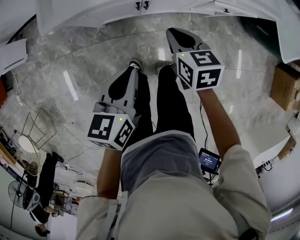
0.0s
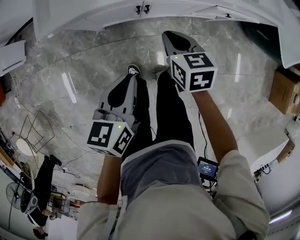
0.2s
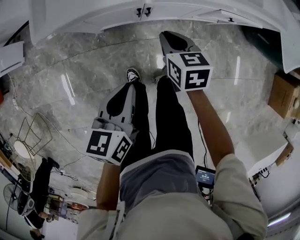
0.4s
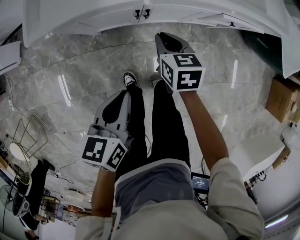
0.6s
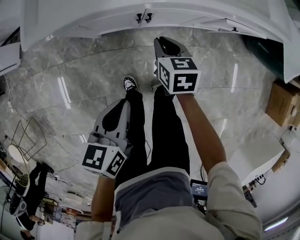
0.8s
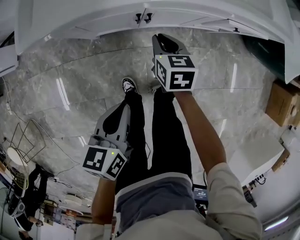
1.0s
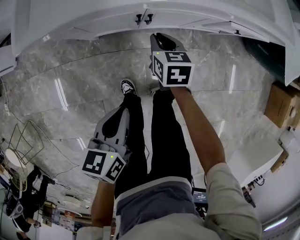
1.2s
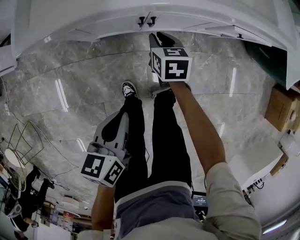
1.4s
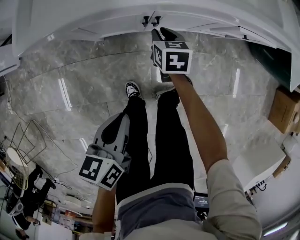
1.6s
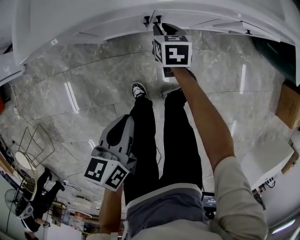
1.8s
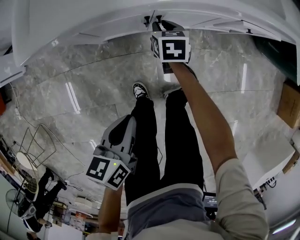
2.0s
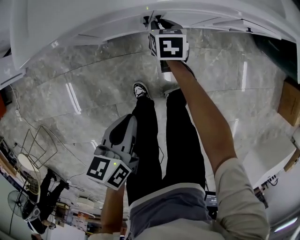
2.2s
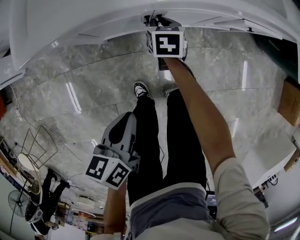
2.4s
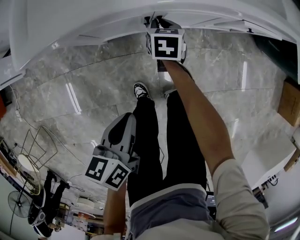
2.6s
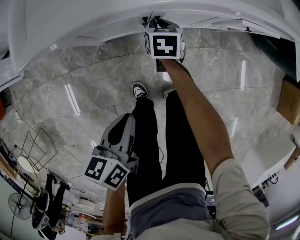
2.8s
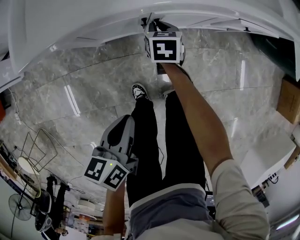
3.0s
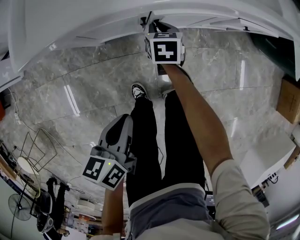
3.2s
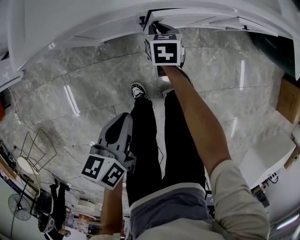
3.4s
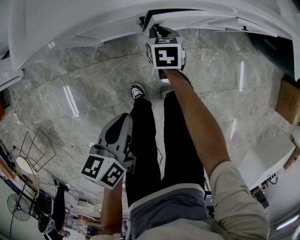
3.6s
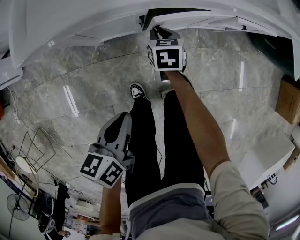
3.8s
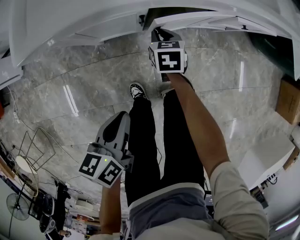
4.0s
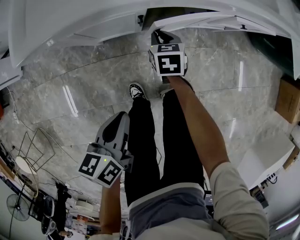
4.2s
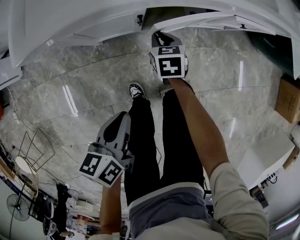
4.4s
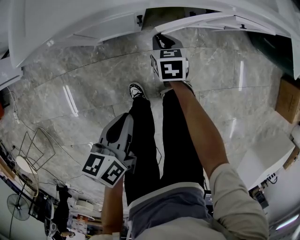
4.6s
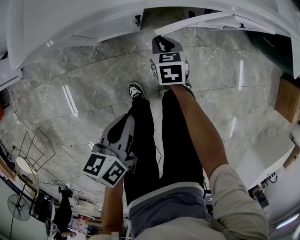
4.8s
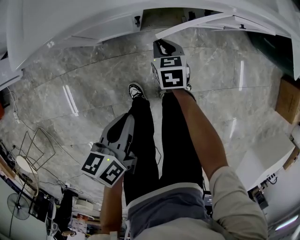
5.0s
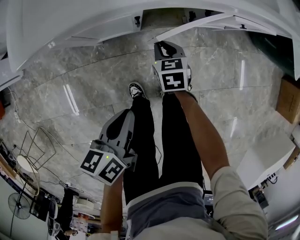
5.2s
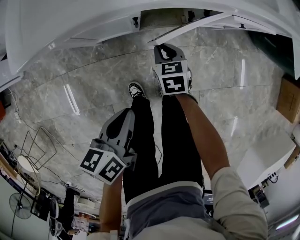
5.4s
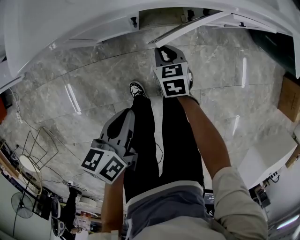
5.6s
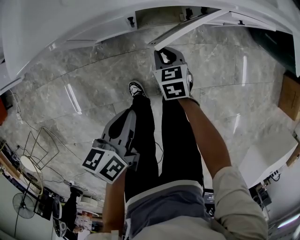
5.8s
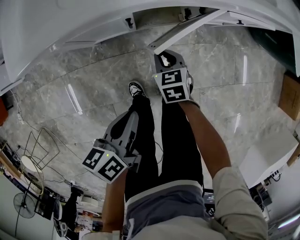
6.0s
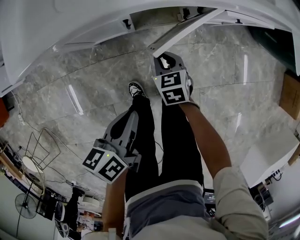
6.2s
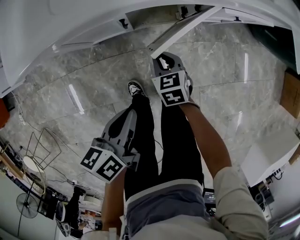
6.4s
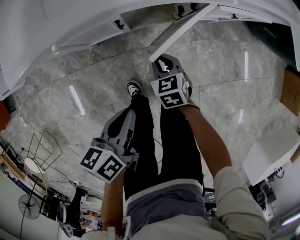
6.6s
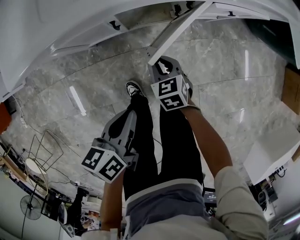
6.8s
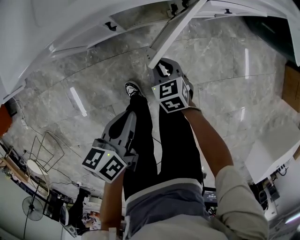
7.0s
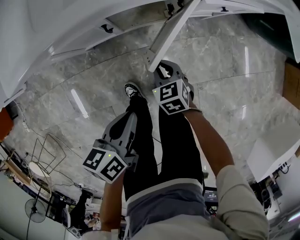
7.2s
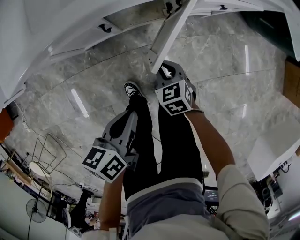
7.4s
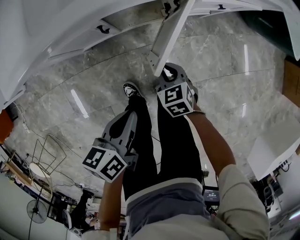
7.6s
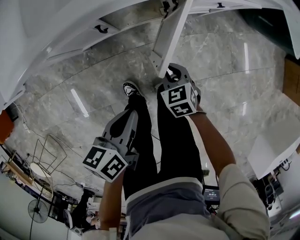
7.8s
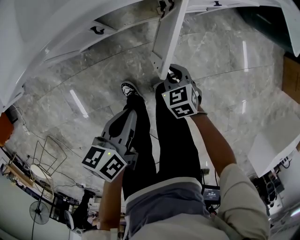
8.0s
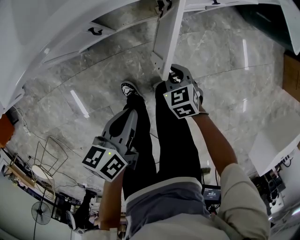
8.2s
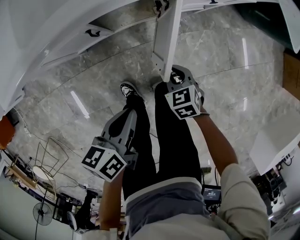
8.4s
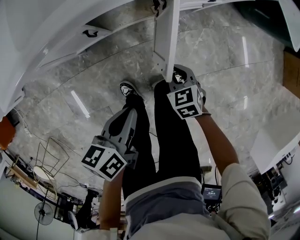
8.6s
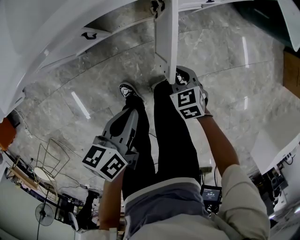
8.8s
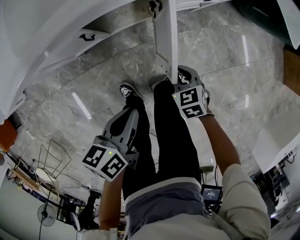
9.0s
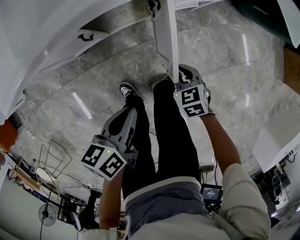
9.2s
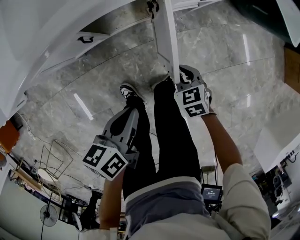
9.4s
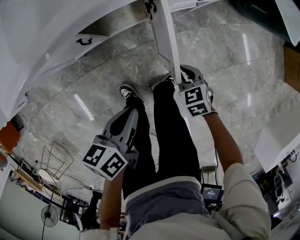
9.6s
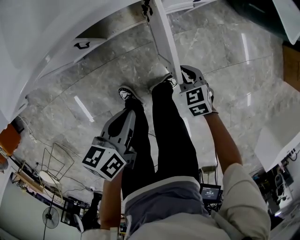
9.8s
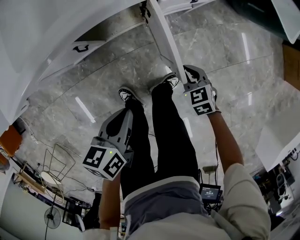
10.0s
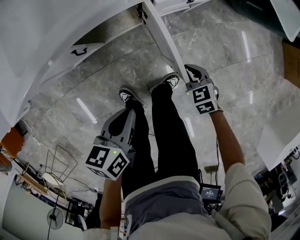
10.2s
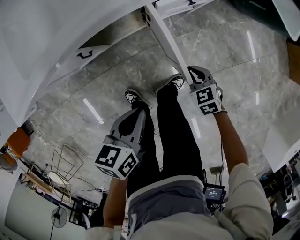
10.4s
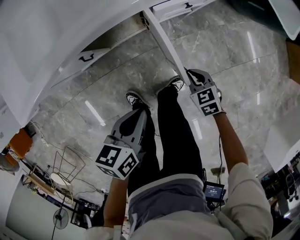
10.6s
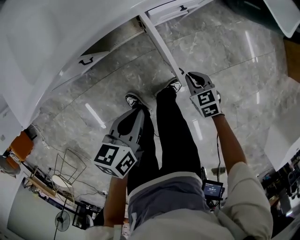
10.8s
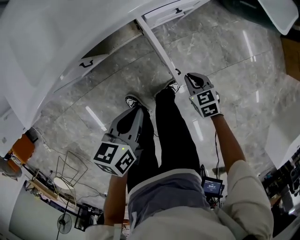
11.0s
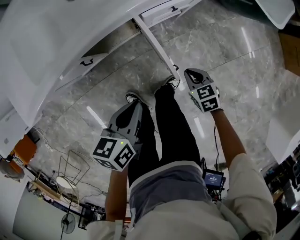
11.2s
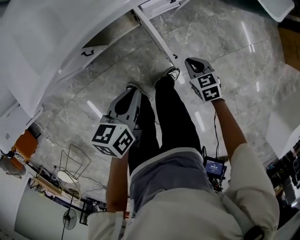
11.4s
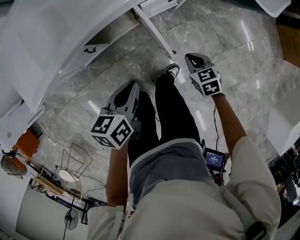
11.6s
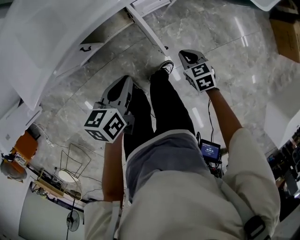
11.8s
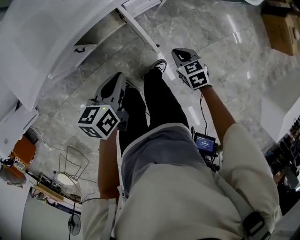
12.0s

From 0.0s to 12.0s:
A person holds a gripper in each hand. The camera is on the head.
From 0.0s to 1.6s: The left gripper goes approximately 15 cm downward; the right gripper goes some 25 cm downward and forward.
From 1.6s to 3.0s: The grippers make only small movements.
From 3.0s to 4.4s: The right gripper goes some 5 cm backward.
From 4.4s to 6.0s: The right gripper moves backward, some 5 cm, while the left gripper shifts approximately 5 cm to the right.
From 6.0s to 7.6s: The left gripper heads to the right, covering about 5 cm. The right gripper moves to the right and backward, about 10 cm.
From 7.6s to 9.0s: The left gripper moves approximately 5 cm. The right gripper moves to the right, approximately 10 cm.
From 9.0s to 10.4s: The right gripper is displaced to the right by about 10 cm; the left gripper heads to the right, covering approximately 5 cm.
From 10.4s to 12.0s: Both grippers move upward, about 15 cm.

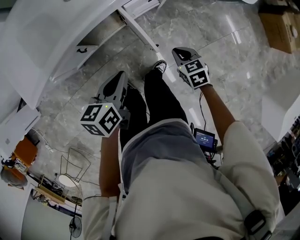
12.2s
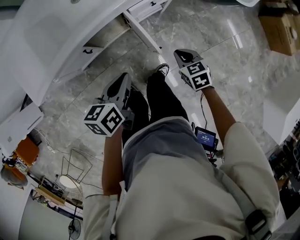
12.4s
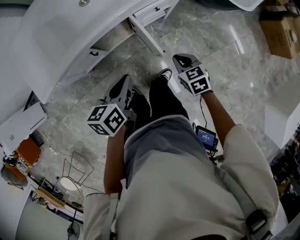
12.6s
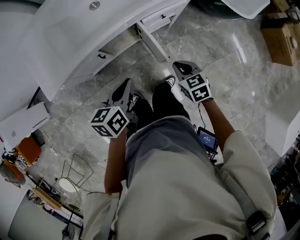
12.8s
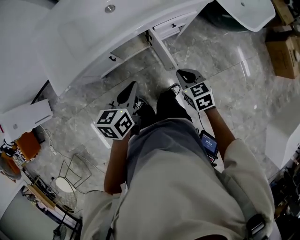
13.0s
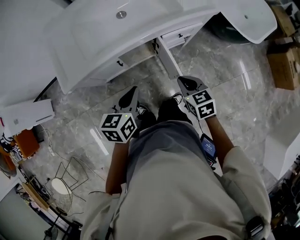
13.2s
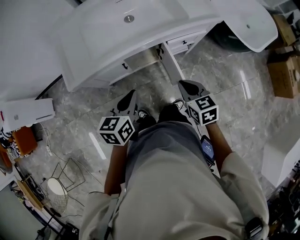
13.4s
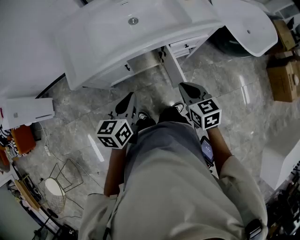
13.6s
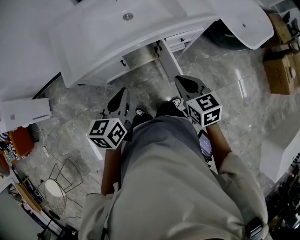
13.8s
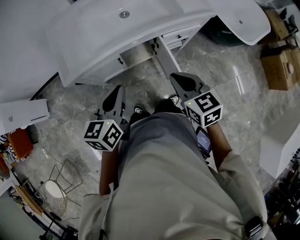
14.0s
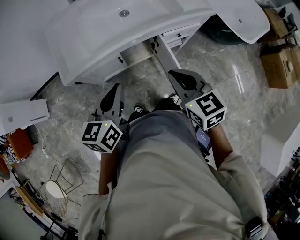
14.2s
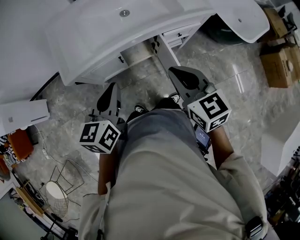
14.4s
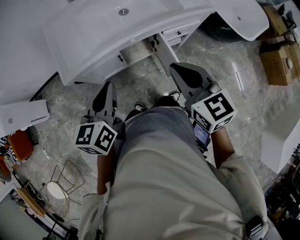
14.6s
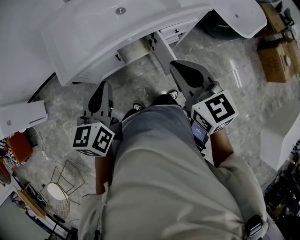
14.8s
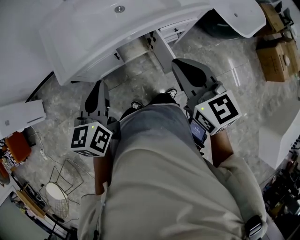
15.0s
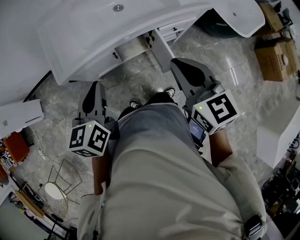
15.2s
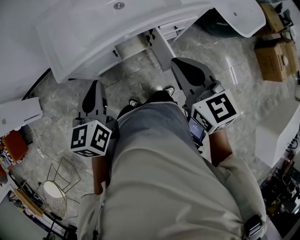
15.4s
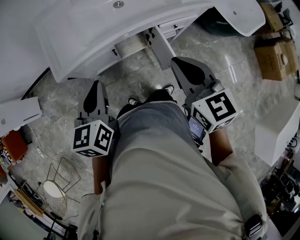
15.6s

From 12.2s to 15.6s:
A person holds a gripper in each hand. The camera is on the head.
From 12.2s to 13.8s: The right gripper is displaced upward and to the left by about 30 cm, and changes its angle by roughly 20 degrees. Meanwhile the left gripper heads to the left and upward, covering approximately 20 cm, and turns by approximately 20 degrees.
From 13.8s to 15.6s: The right gripper heads upward, covering roughly 10 cm. The left gripper moves to the left, some 5 cm.

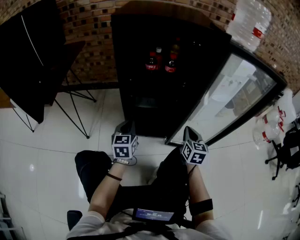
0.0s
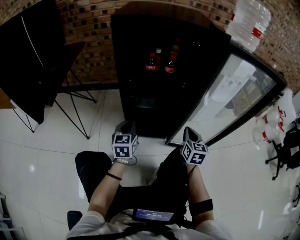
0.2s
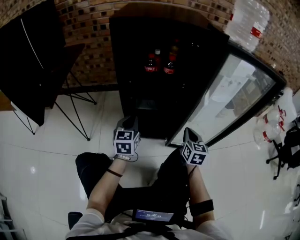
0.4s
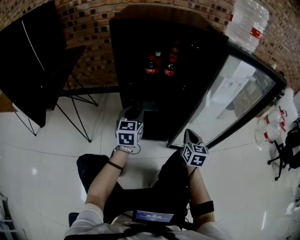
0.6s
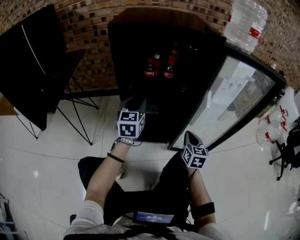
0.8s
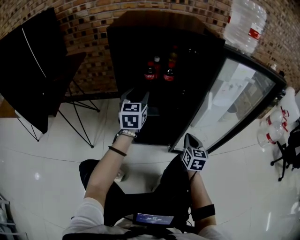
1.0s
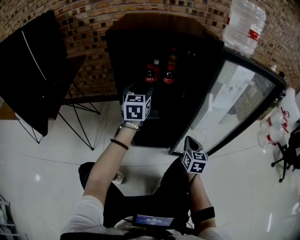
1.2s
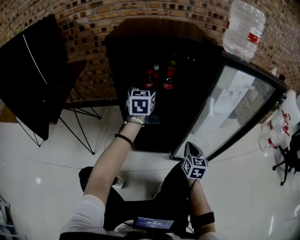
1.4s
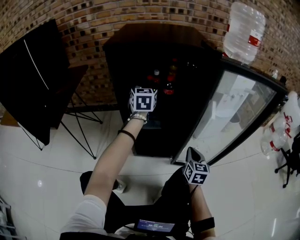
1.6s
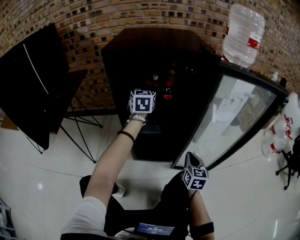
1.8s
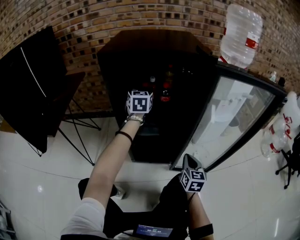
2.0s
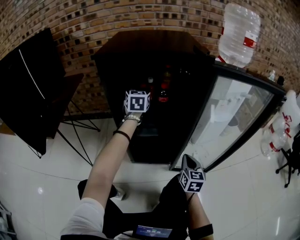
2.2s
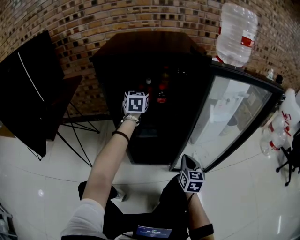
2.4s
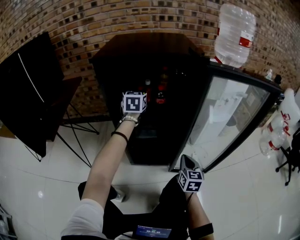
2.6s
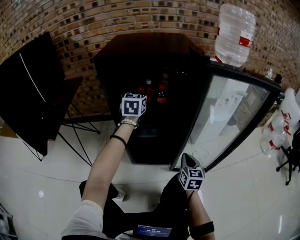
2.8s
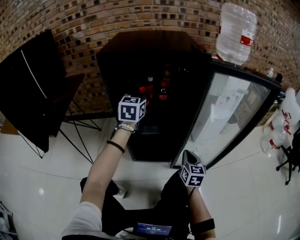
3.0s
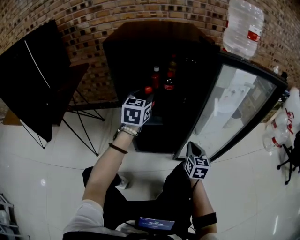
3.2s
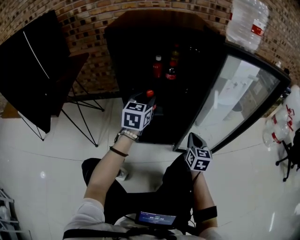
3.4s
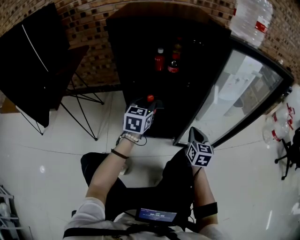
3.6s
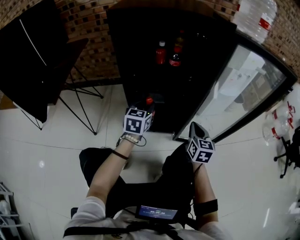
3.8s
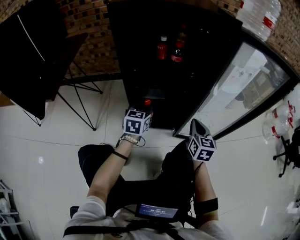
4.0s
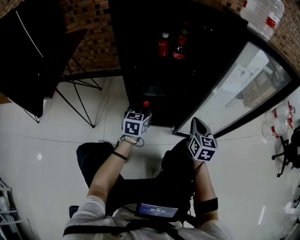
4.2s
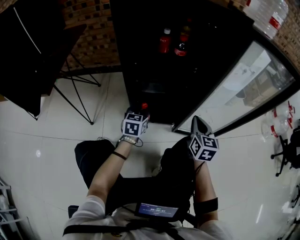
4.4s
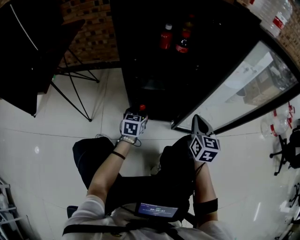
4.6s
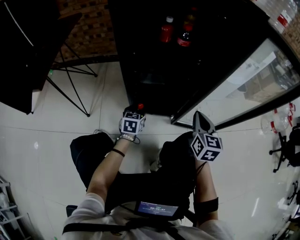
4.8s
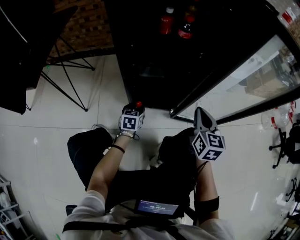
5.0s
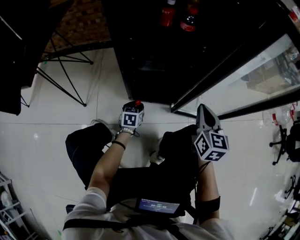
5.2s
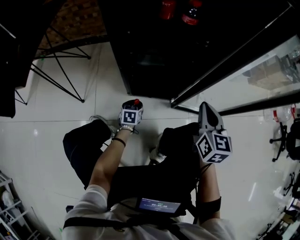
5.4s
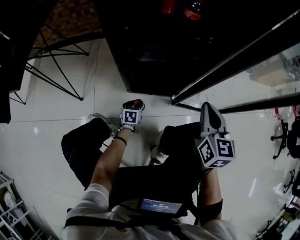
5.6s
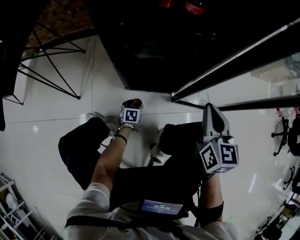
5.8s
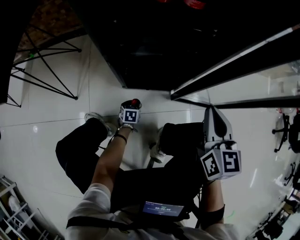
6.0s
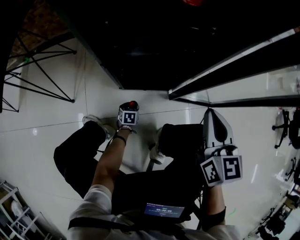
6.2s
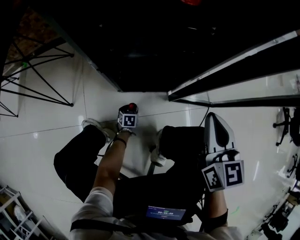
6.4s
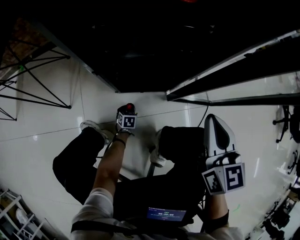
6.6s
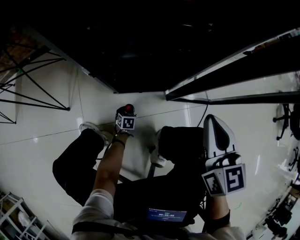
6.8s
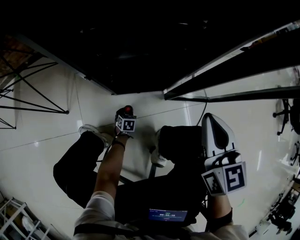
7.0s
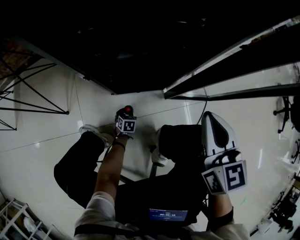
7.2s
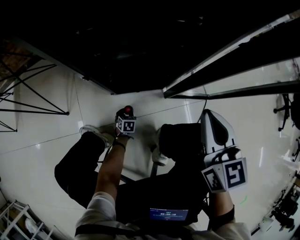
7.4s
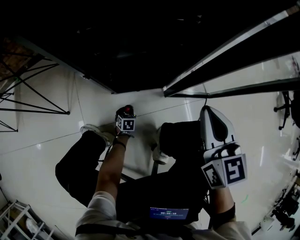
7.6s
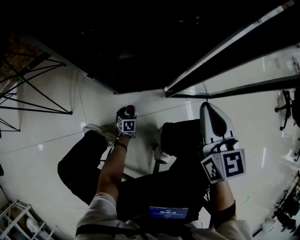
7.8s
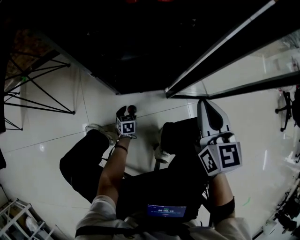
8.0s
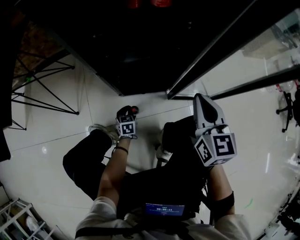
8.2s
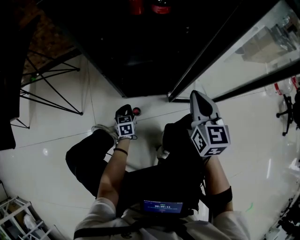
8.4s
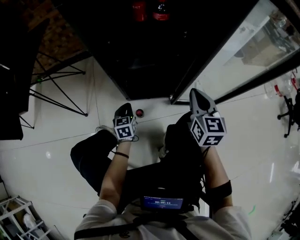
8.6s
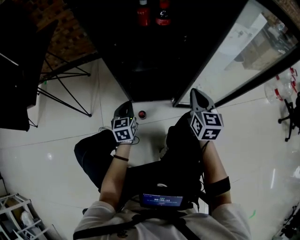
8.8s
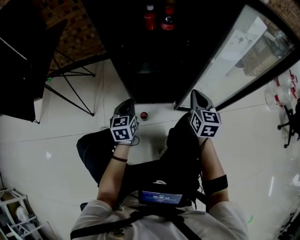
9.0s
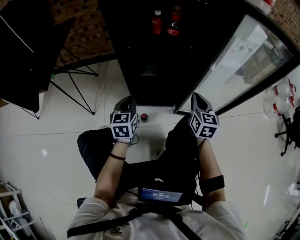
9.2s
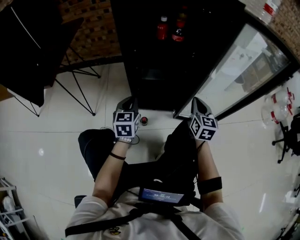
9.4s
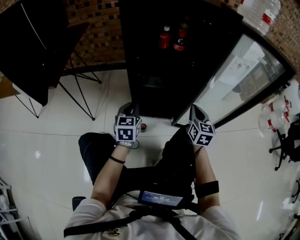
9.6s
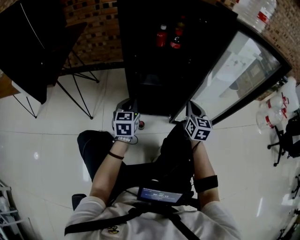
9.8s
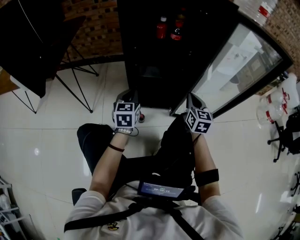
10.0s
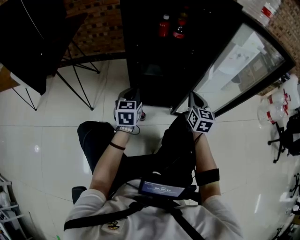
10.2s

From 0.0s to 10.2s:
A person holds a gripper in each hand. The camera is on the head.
From 0.0s to 1.4s: The left gripper heads forward and upward, covering about 25 cm, and opens.
From 1.4s to 3.0s: The left gripper travels forward and back again, some 10 cm each way, and closes its fingers.
From 3.0s to 4.4s: The left gripper travels downward and backward by approximately 35 cm, and rotates some 20 degrees.
From 4.4s to 5.8s: The left gripper goes some 35 cm downward, and swivels approximately 30 degrees.
From 5.8s to 7.2s: The left gripper moves downward, approximately 10 cm.
From 7.2s to 8.8s: The left gripper goes roughly 40 cm upward, points its fingers approximately 30 degrees further upward, and closes up.
From 8.8s to 10.2s: The left gripper goes about 15 cm upward.
